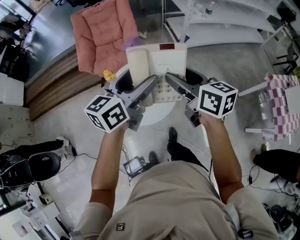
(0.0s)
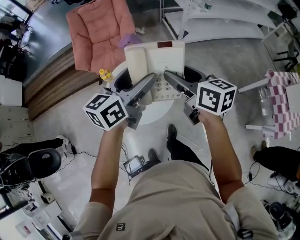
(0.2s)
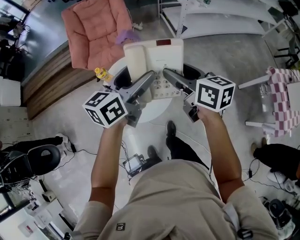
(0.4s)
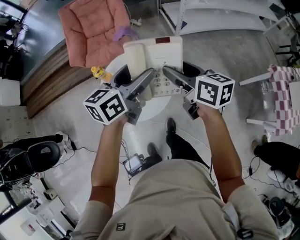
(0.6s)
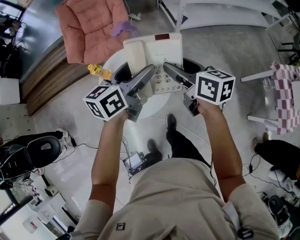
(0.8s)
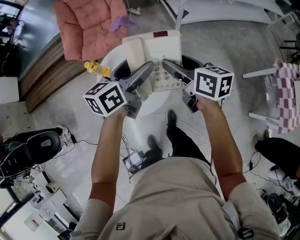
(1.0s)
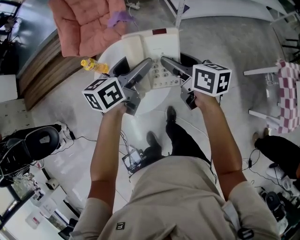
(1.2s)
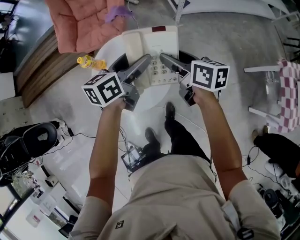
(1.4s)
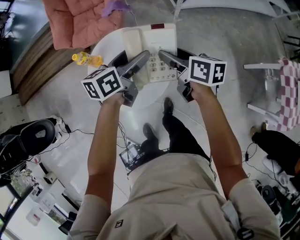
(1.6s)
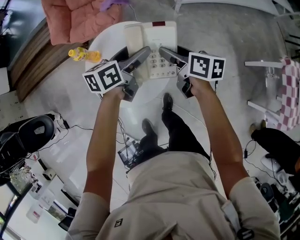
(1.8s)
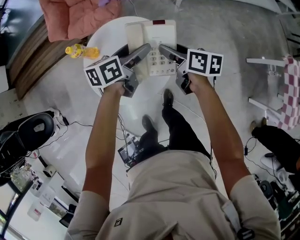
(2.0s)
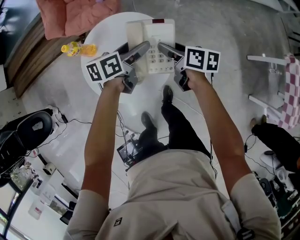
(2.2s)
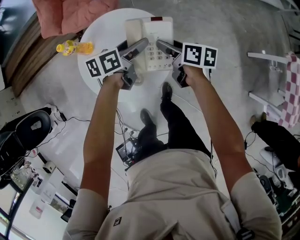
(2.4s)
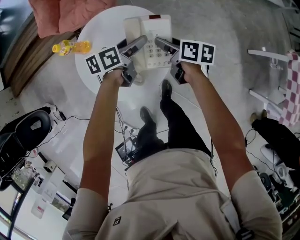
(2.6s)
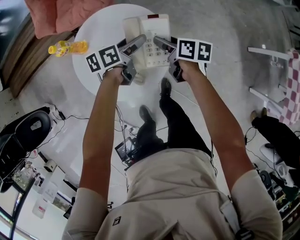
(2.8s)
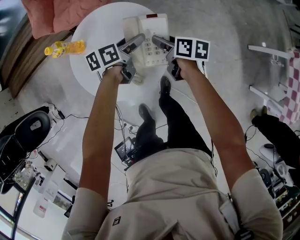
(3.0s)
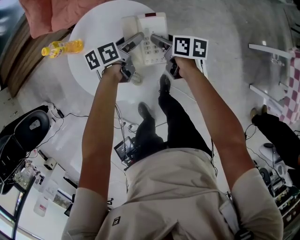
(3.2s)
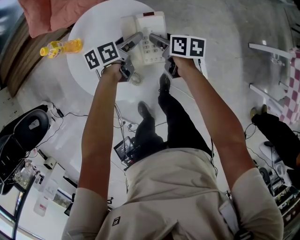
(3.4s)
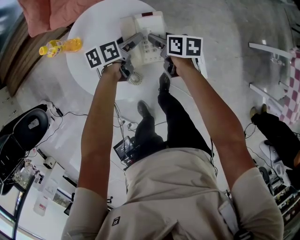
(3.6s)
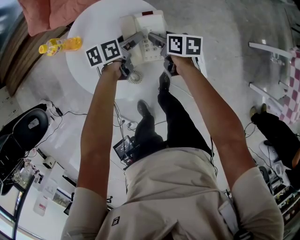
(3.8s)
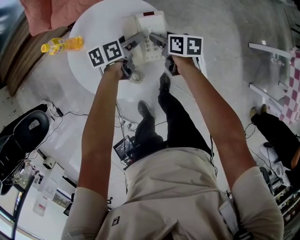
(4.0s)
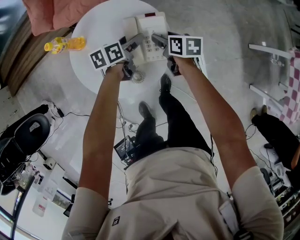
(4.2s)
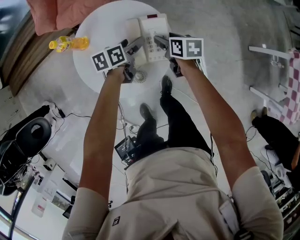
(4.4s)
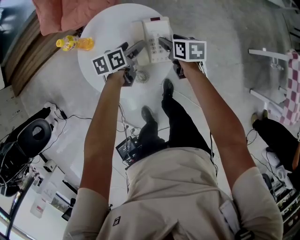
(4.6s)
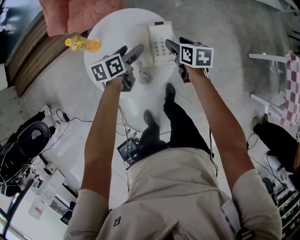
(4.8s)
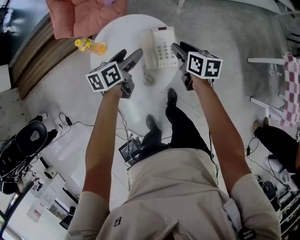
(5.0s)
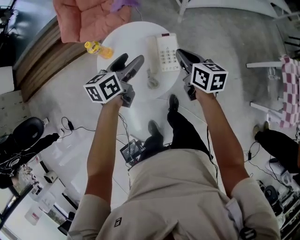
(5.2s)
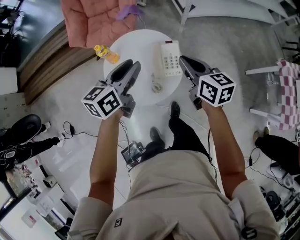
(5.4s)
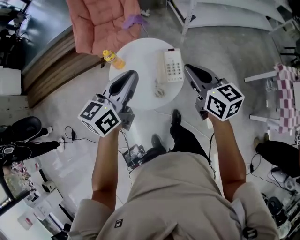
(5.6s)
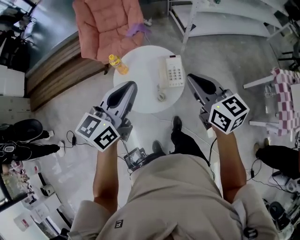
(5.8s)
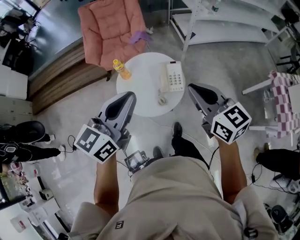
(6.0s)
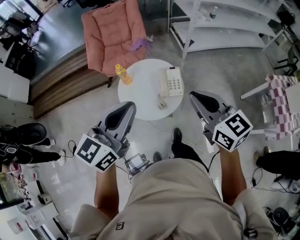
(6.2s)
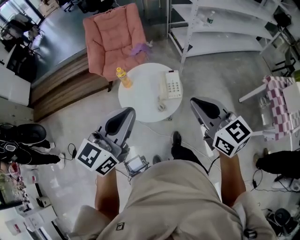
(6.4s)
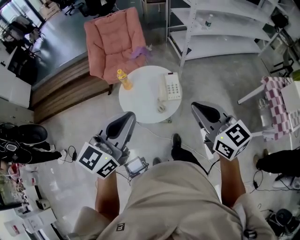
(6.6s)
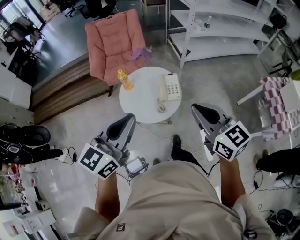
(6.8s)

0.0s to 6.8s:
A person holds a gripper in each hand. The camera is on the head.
0.0s to 1.4s: Both grippers travel together downward and forward, some 20 cm.
1.4s to 2.8s: The two grippers go approximately 25 cm downward. The left gripper changes its angle by roughly 20 degrees.
2.8s to 4.0s: The two grippers go roughly 5 cm downward.
4.0s to 5.4s: Both grippers travel together upward, approximately 30 cm. The left gripper rotates roughly 30 degrees, and closes. Meanwhile the right gripper changes its angle by about 30 degrees, and closes its fingers.
5.4s to 6.8s: Both grippers travel together backward and upward, some 35 cm. The right gripper rotates some 20 degrees. The left gripper rotates approximately 30 degrees.

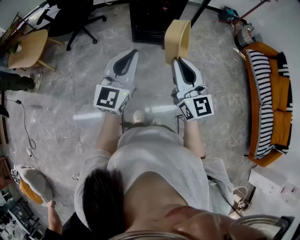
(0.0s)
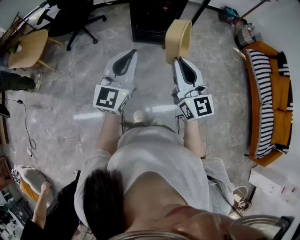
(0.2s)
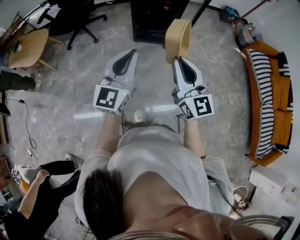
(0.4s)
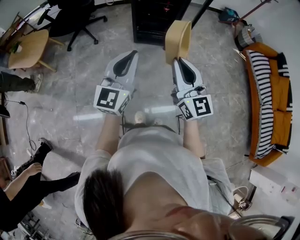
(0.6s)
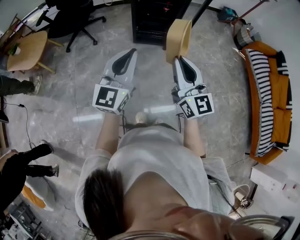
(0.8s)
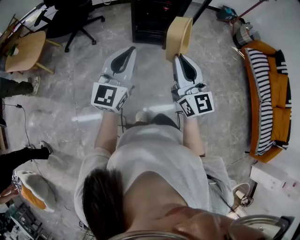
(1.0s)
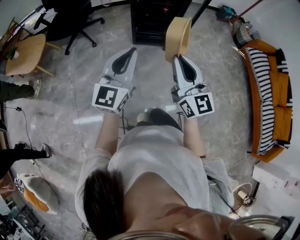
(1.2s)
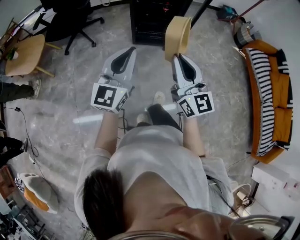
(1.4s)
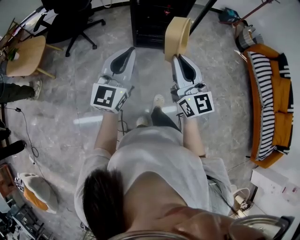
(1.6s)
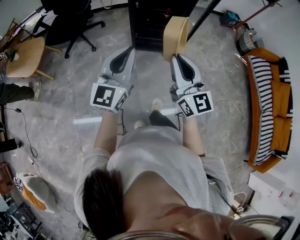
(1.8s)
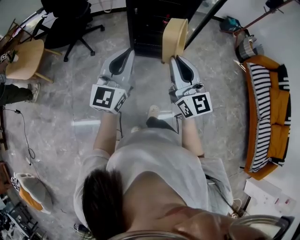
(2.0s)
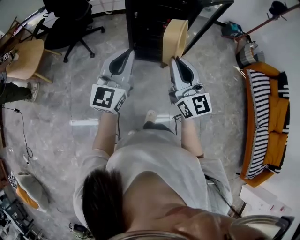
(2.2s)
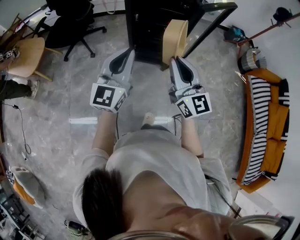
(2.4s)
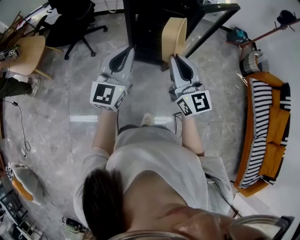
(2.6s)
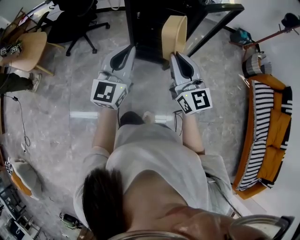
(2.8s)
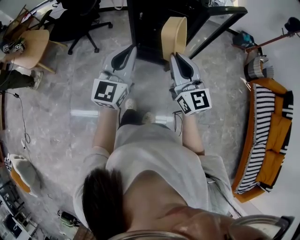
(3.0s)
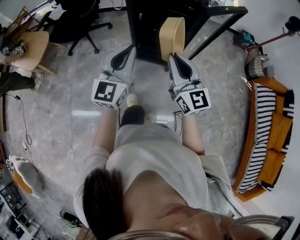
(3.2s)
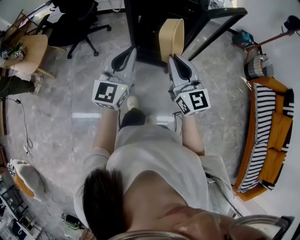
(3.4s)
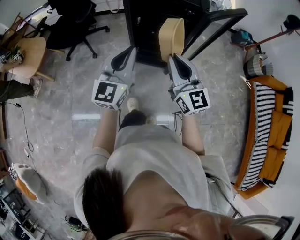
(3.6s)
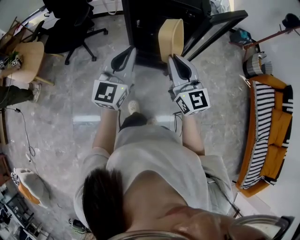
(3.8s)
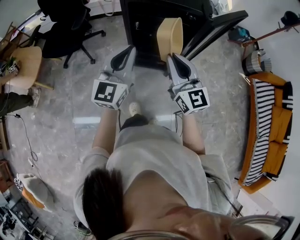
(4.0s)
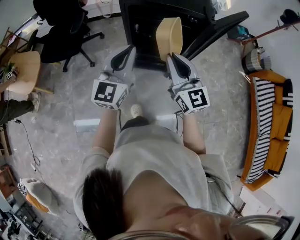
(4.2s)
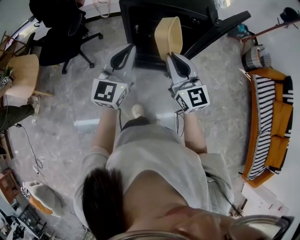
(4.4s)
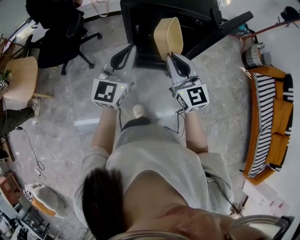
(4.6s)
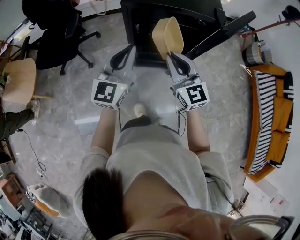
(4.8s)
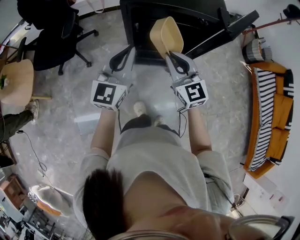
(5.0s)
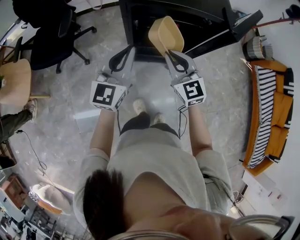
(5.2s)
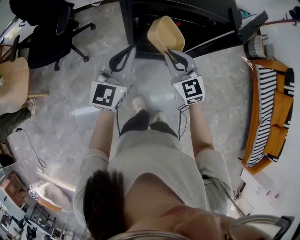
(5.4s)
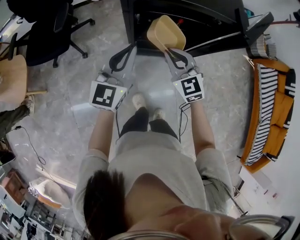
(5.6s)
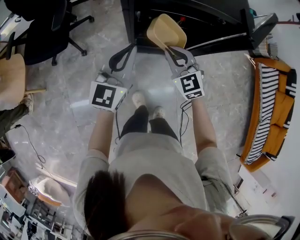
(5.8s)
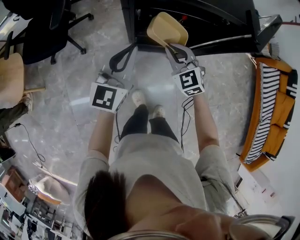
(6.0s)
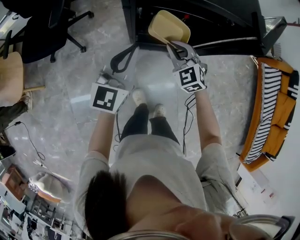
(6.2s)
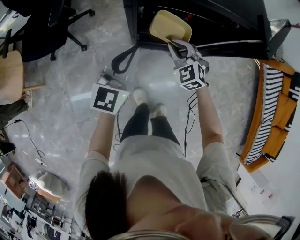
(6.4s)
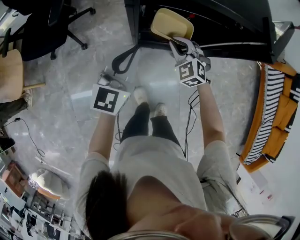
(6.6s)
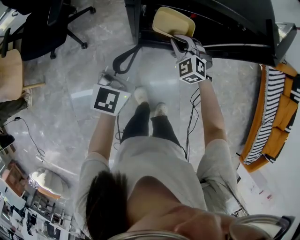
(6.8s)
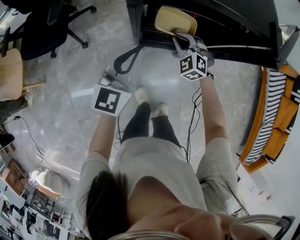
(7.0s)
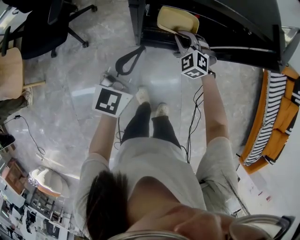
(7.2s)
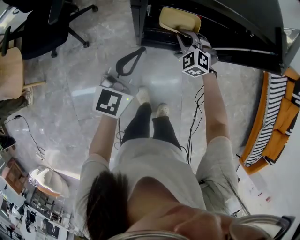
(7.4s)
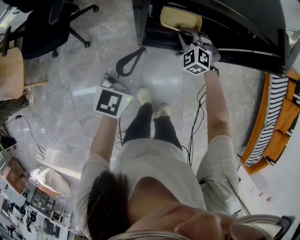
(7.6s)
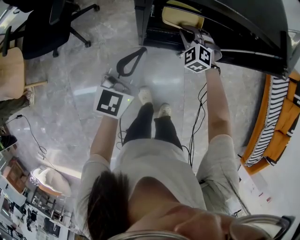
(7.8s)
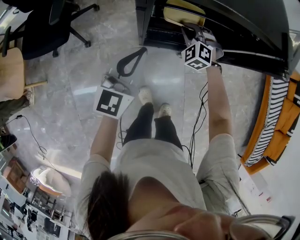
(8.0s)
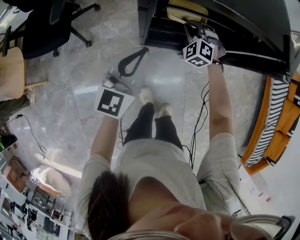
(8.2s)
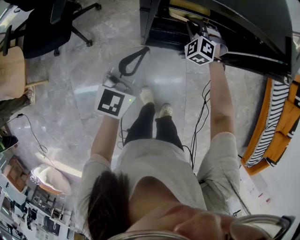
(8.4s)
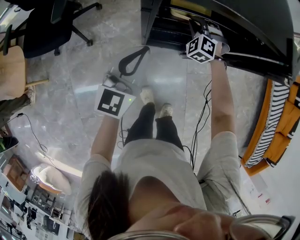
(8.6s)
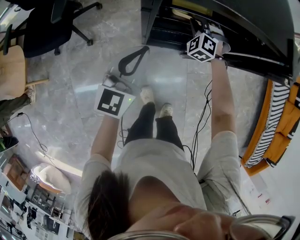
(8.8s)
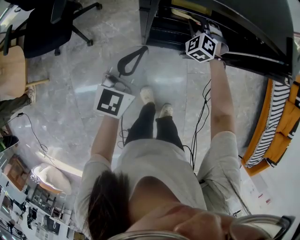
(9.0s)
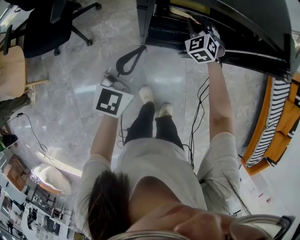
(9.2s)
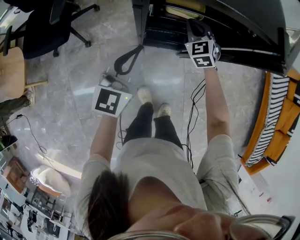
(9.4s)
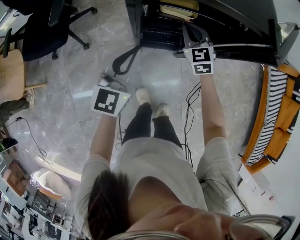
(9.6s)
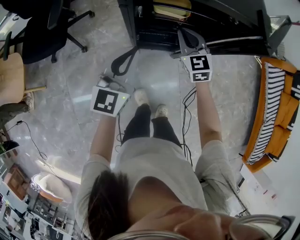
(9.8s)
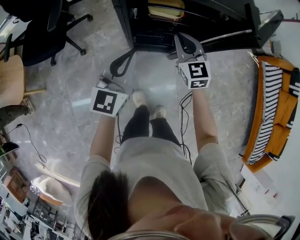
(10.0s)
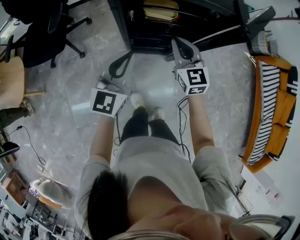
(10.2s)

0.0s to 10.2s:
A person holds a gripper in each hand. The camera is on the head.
0.0s to 1.4s: The left gripper moves forward and to the left, roughly 10 cm; the right gripper heads forward, covering some 5 cm.
1.4s to 3.0s: The grippers both shift forward and to the right by approximately 30 cm.
3.0s to 4.4s: The right gripper travels forward and to the left by roughly 20 cm; the left gripper moves forward, approximately 20 cm.
4.4s to 5.8s: Both grippers move downward and forward, about 20 cm. The right gripper rotates about 30 degrees.
5.8s to 7.2s: The left gripper heads downward, covering about 5 cm. The right gripper moves downward and forward, some 20 cm, and swivels approximately 30 degrees.
7.2s to 8.8s: The right gripper heads forward, covering about 10 cm.
8.8s to 10.2s: The right gripper is displaced upward and backward by some 25 cm, and rotates around the line of its fingers by some 50 degrees, clockwise from behind, while the left gripper is displaced backward, upward and to the right by some 15 cm.

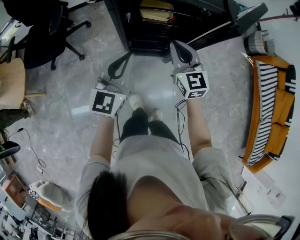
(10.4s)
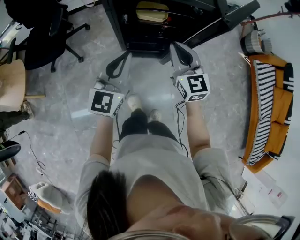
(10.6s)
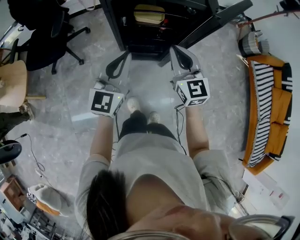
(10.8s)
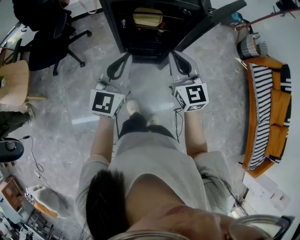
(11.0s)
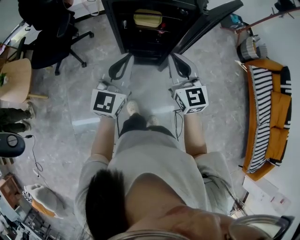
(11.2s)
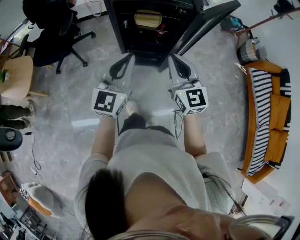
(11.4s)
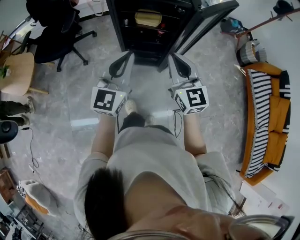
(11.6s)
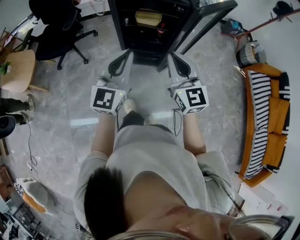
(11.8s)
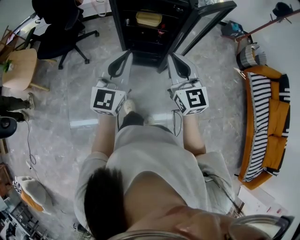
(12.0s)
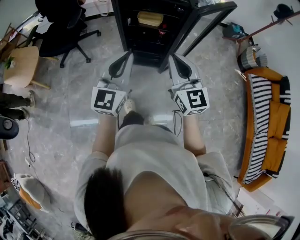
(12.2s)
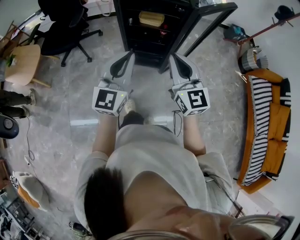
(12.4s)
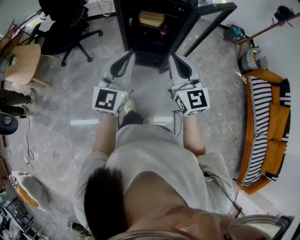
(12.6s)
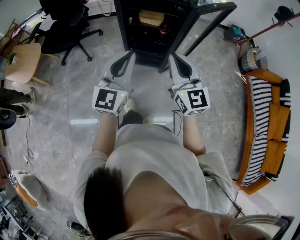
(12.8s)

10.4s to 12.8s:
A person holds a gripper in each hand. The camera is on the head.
10.4s to 11.6s: The right gripper travels backward and upward by some 25 cm. Meanwhile the left gripper moves backward, upward and to the right, approximately 20 cm.
11.6s to 12.8s: Both grippers move backward, about 10 cm.

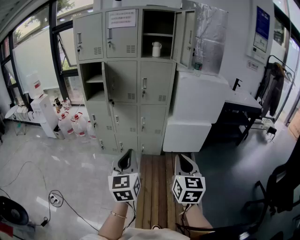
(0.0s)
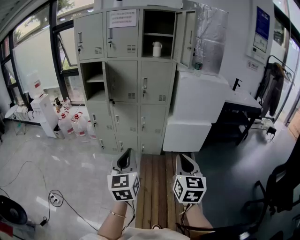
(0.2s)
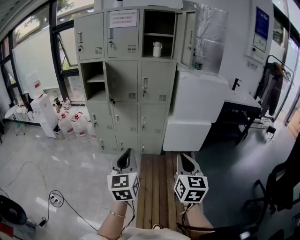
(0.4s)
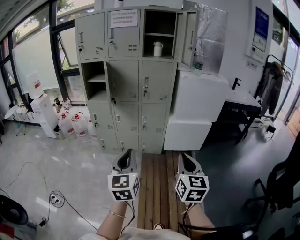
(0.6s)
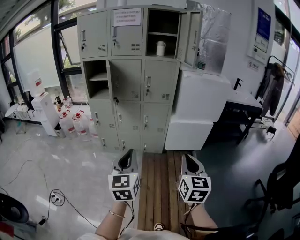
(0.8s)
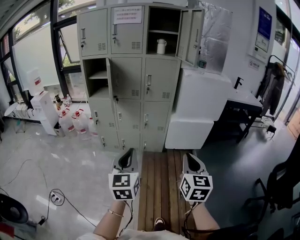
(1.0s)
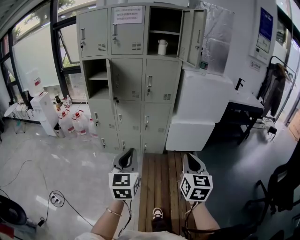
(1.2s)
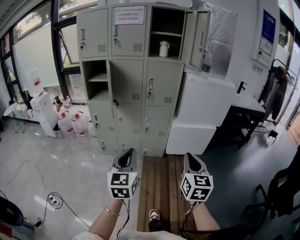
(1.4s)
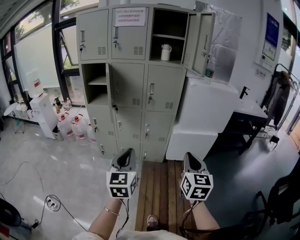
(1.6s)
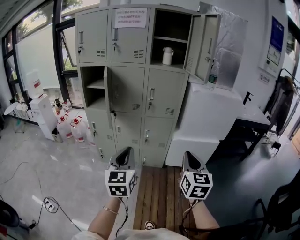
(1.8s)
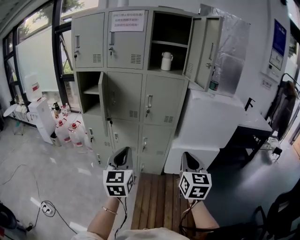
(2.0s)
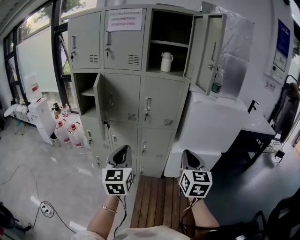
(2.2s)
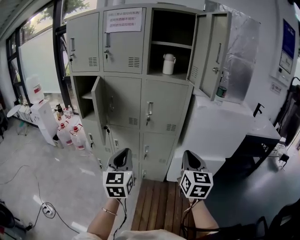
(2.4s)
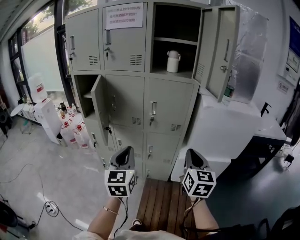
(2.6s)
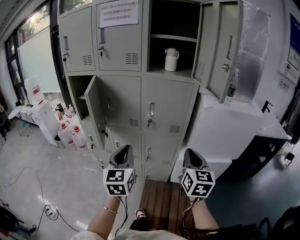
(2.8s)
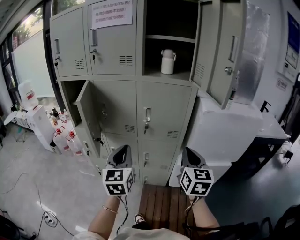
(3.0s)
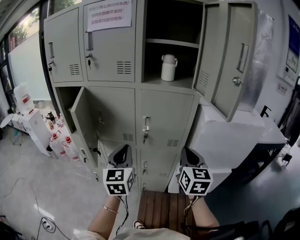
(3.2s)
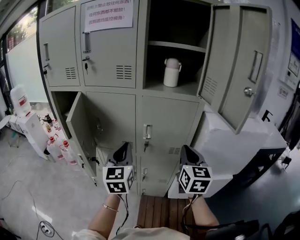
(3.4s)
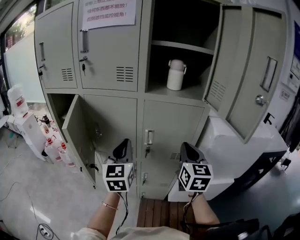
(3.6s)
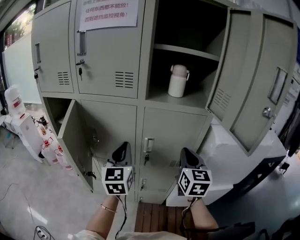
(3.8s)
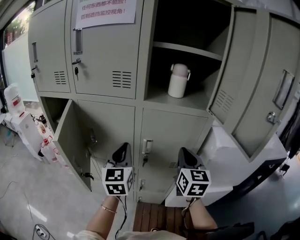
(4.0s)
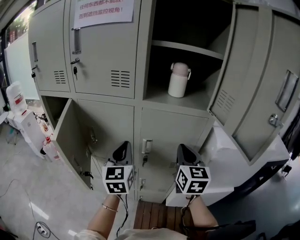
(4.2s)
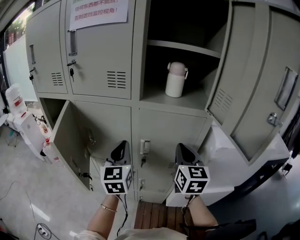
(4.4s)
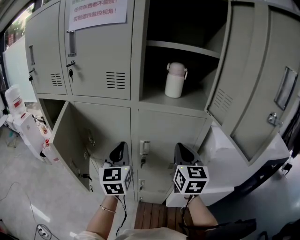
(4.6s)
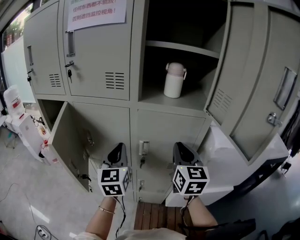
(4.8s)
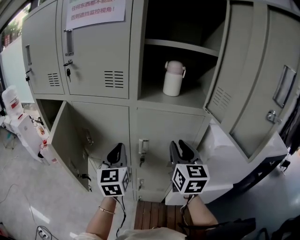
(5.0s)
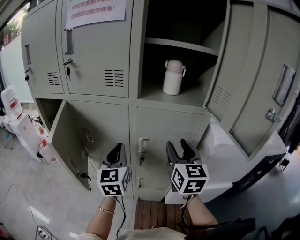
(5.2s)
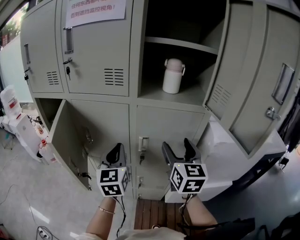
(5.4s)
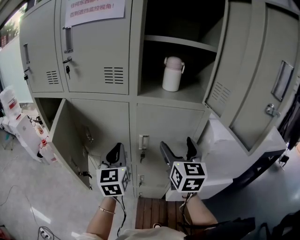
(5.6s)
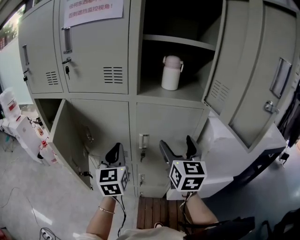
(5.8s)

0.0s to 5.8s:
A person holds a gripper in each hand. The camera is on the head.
0.0s to 1.4s: The grippers both shift forward by about 5 cm.
1.4s to 2.8s: The two grippers go about 35 cm forward.
2.8s to 4.4s: Both grippers move forward, some 30 cm.
4.4s to 5.8s: The right gripper opens.
